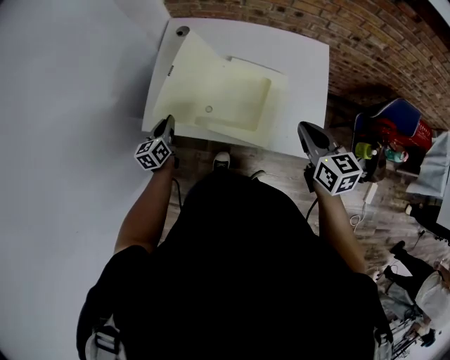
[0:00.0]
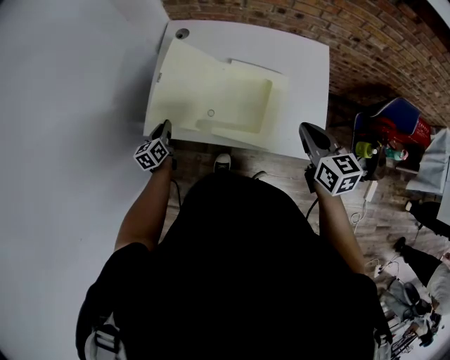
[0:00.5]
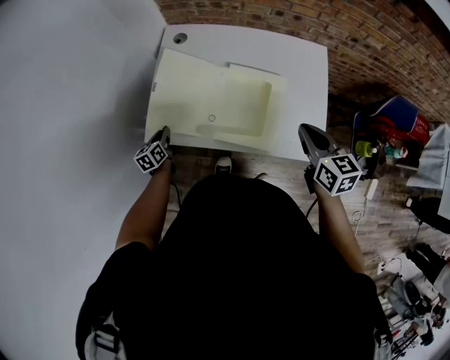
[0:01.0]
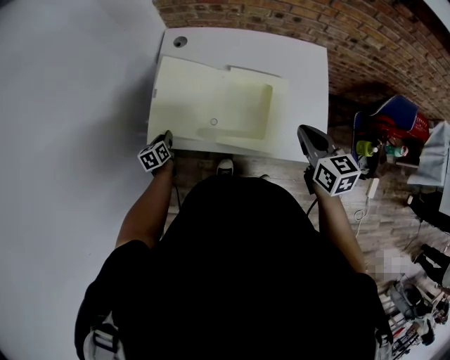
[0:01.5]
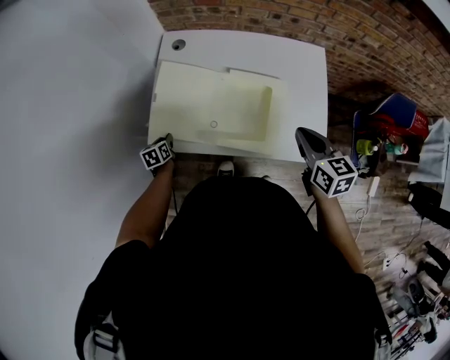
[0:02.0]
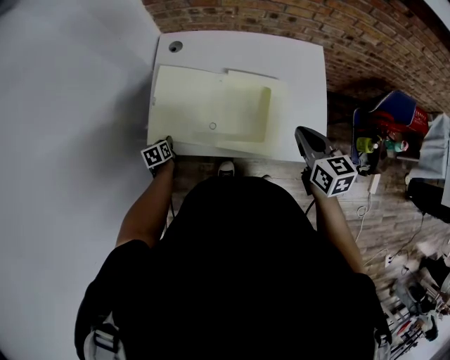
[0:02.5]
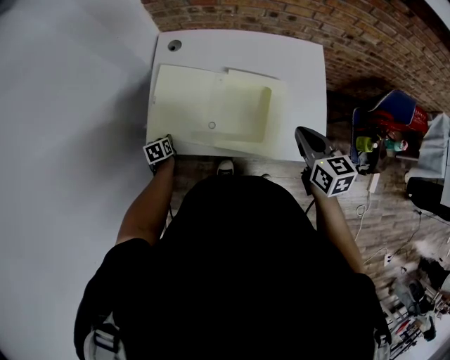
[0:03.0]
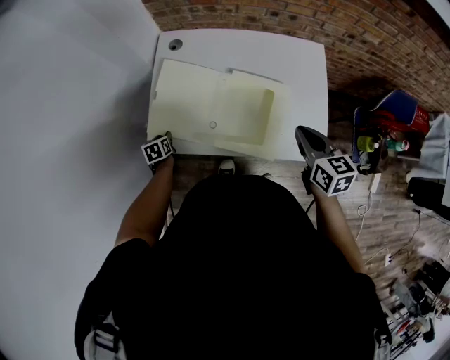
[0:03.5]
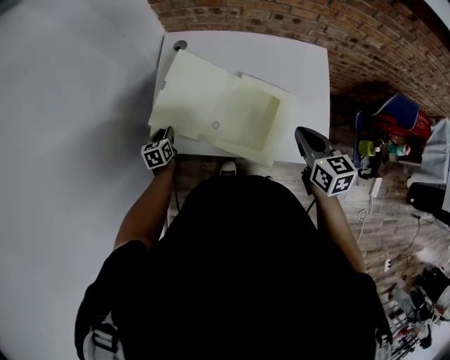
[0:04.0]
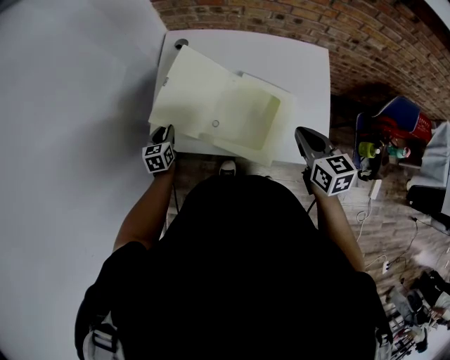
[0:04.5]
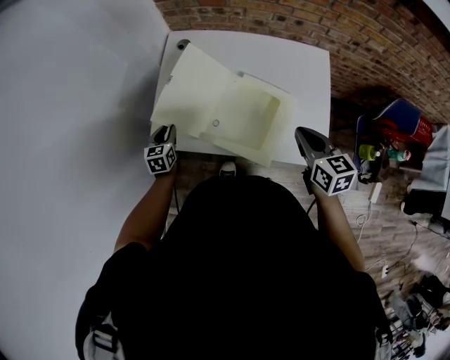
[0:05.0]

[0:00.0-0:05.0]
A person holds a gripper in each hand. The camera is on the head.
0:00.0 to 0:02.5: The left gripper moves downward and to the left, some 15 cm, and tilts its fingers some 30 degrees downward.
0:02.5 to 0:05.0: The left gripper is displaced upward by approximately 10 cm, and swivels some 30 degrees.

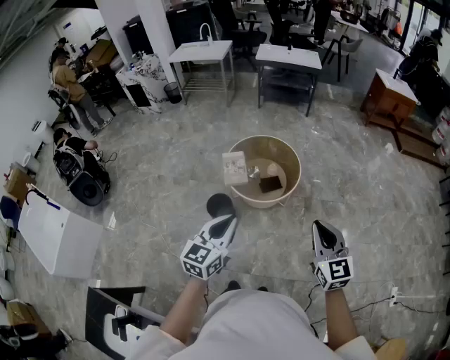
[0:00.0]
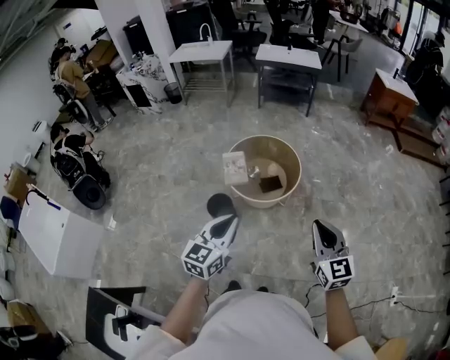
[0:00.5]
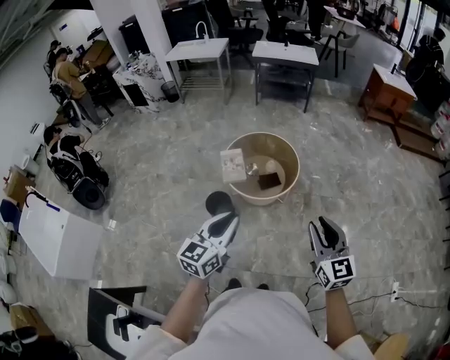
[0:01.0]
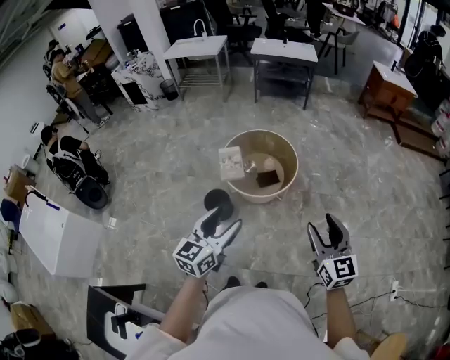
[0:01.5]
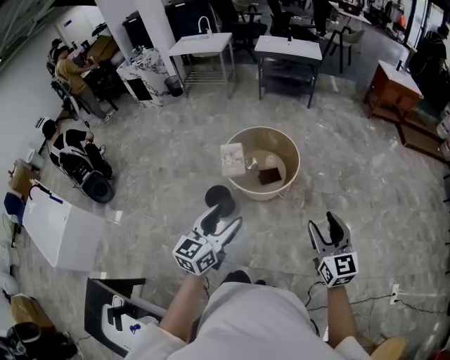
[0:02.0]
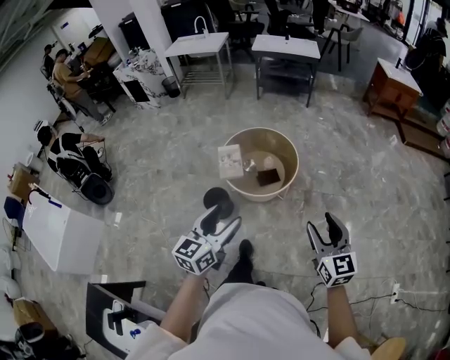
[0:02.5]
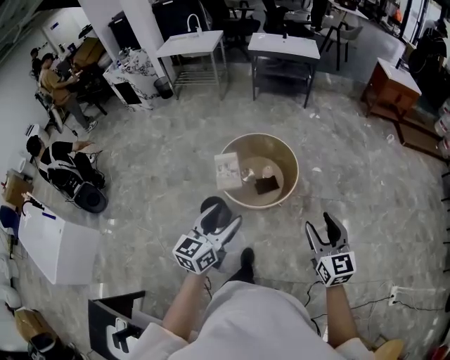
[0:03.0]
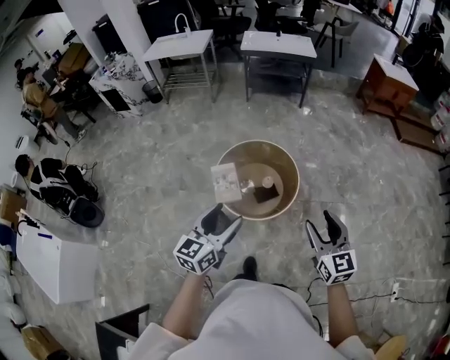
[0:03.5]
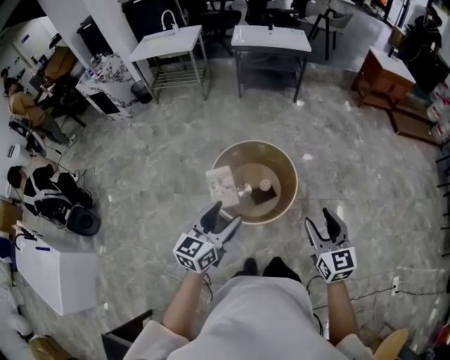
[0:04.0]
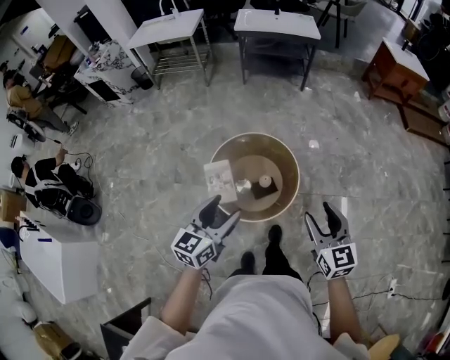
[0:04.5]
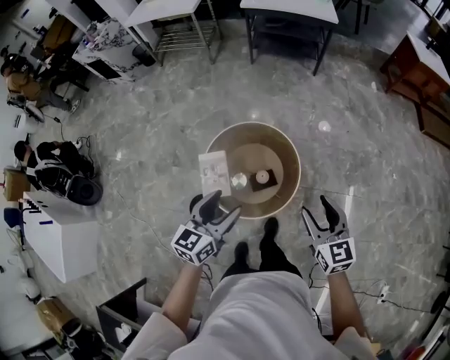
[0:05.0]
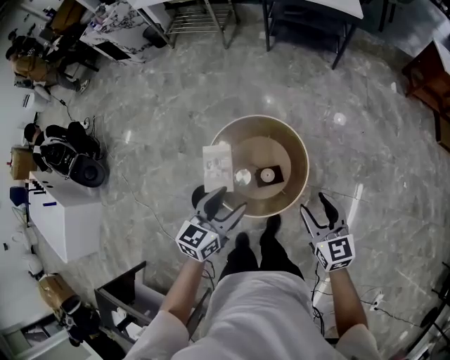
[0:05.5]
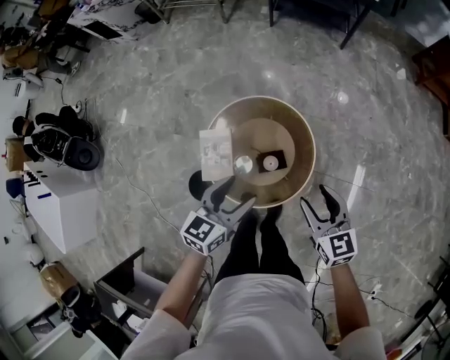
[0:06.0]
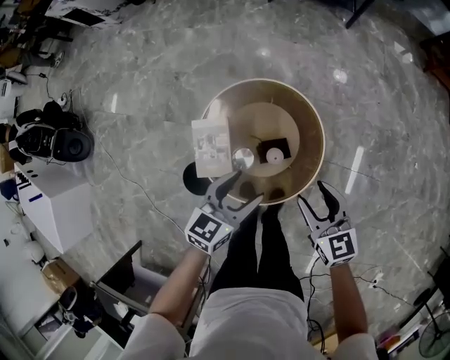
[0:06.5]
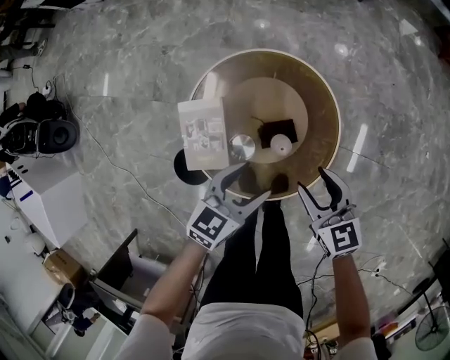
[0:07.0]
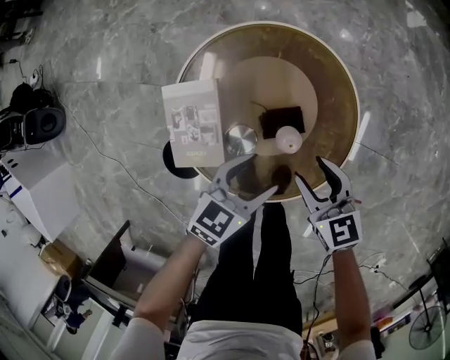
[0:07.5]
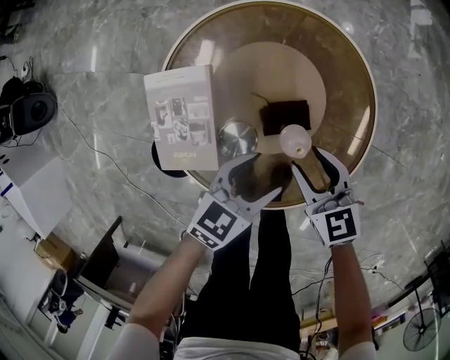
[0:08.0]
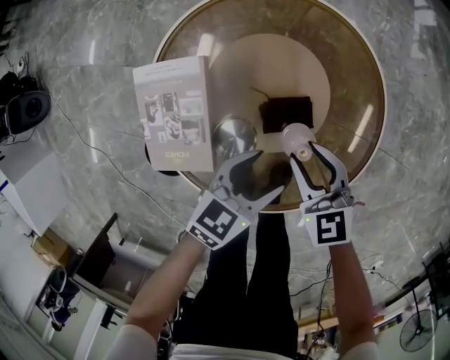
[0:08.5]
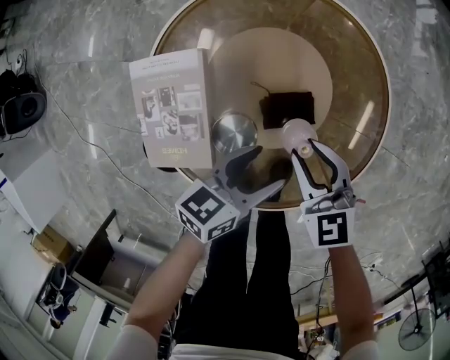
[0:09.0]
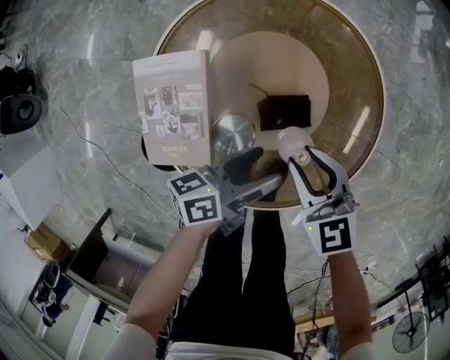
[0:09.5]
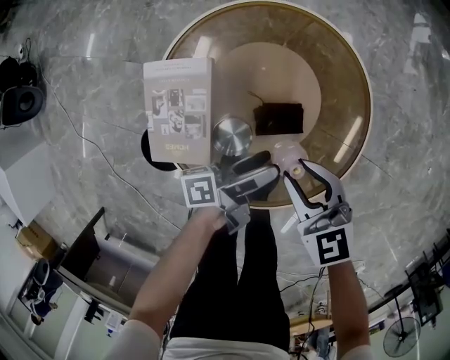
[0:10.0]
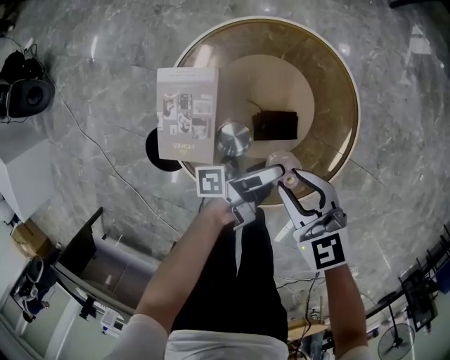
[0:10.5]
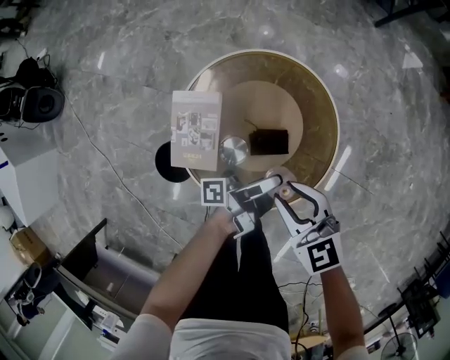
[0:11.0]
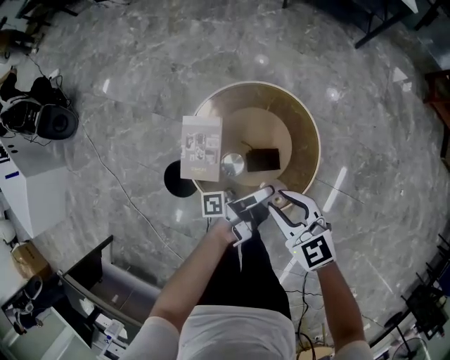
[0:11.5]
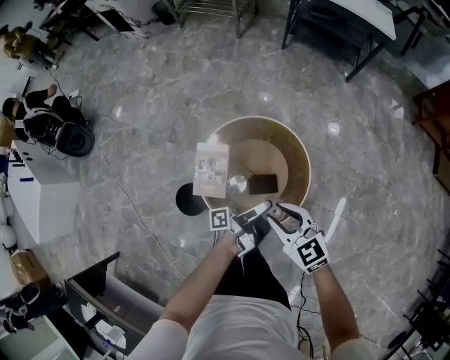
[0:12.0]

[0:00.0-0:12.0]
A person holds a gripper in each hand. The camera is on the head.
0:00.0 to 0:02.0: The right gripper heads to the right, covering some 5 cm, and opens its fingers, while the left gripper opens its fingers.
0:02.0 to 0:04.0: The two grippers go roughly 30 cm forward.
0:04.0 to 0:06.0: The right gripper is displaced forward and downward by some 35 cm, and rotates some 30 degrees. Meanwhile the left gripper shifts approximately 35 cm forward, downward and to the right.
0:06.0 to 0:08.0: The two grippers go some 40 cm downward.
0:08.0 to 0:10.0: The left gripper rolls counterclockwise, seen from behind, by some 70 degrees.
0:10.0 to 0:12.0: Both grippers travel together upward, about 35 cm. The left gripper turns by roughly 20 degrees.

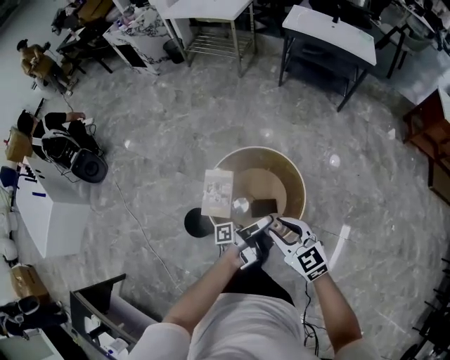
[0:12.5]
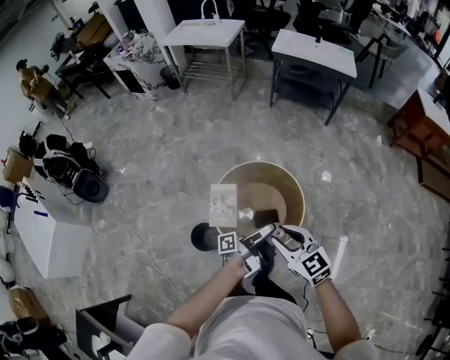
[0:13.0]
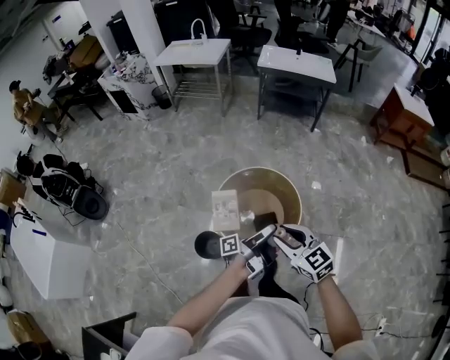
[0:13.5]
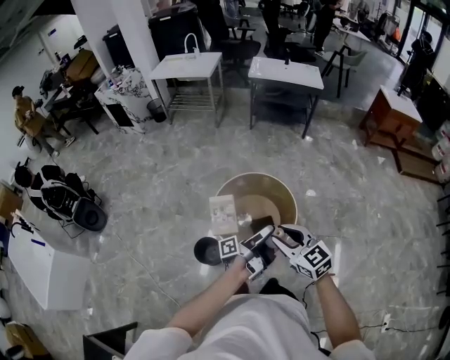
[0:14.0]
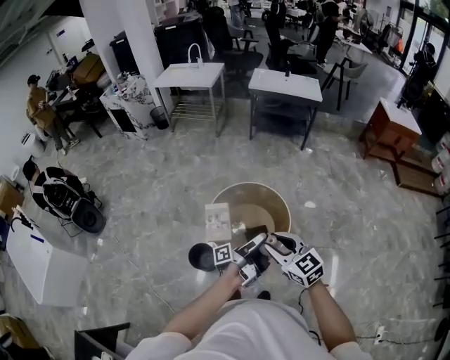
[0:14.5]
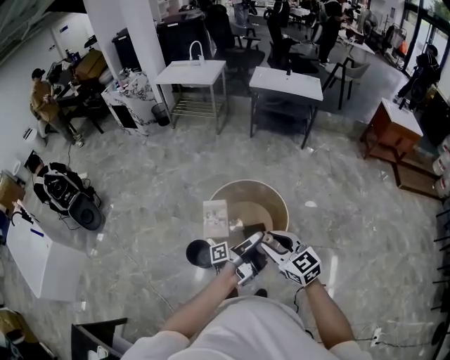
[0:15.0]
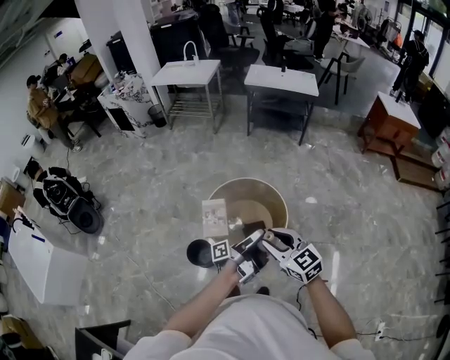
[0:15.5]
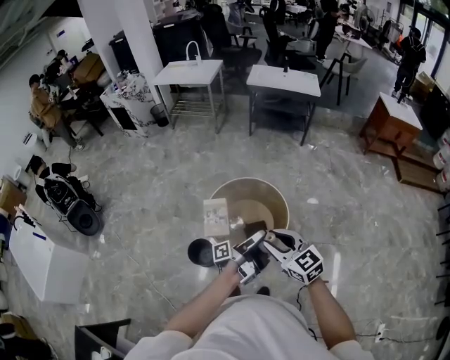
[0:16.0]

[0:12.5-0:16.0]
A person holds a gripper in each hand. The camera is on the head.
0:12.5 to 0:14.5: Both grippers move backward and upward, approximately 25 cm.
0:14.5 to 0:16.0: There are only small adjustments of the grippers.

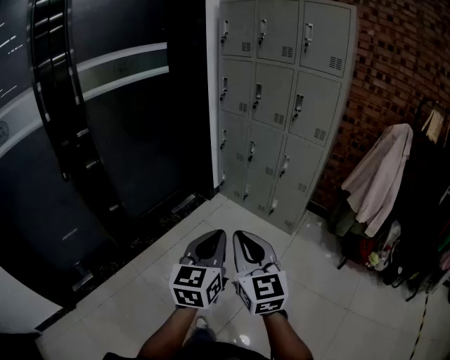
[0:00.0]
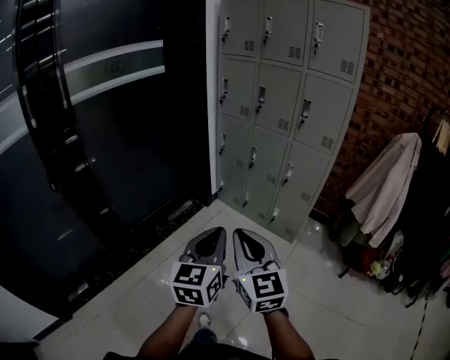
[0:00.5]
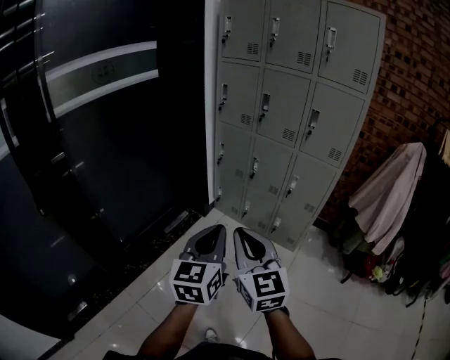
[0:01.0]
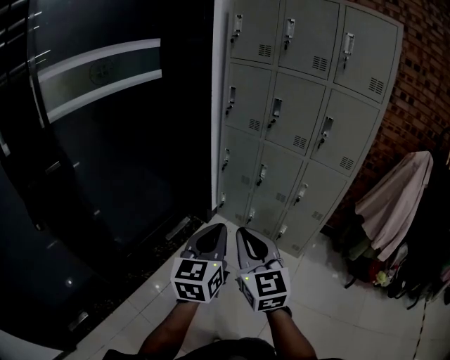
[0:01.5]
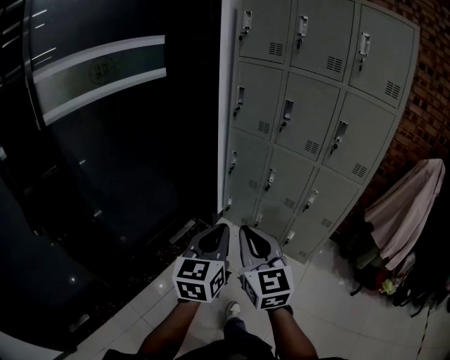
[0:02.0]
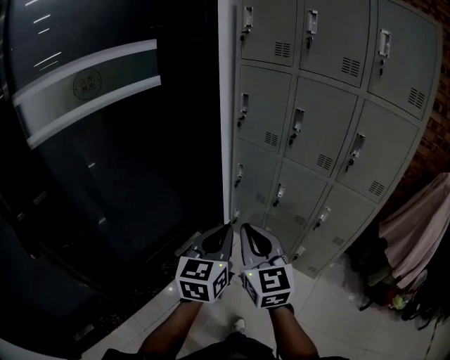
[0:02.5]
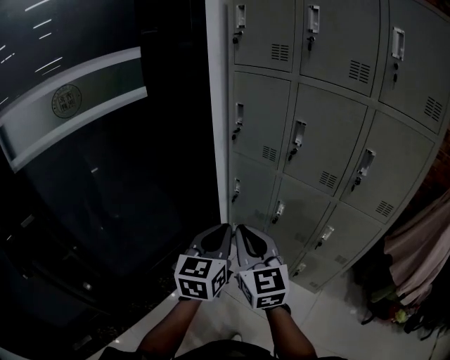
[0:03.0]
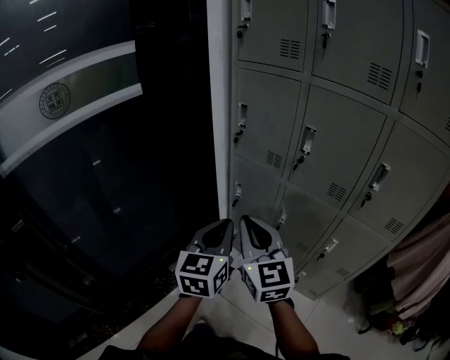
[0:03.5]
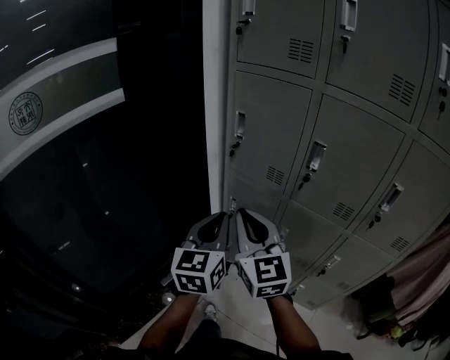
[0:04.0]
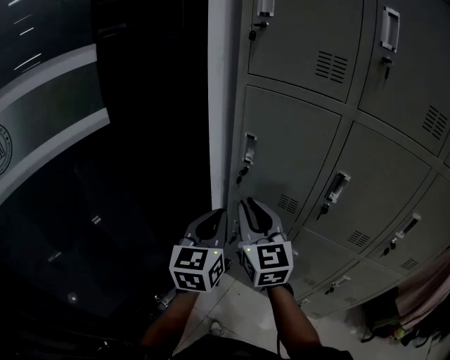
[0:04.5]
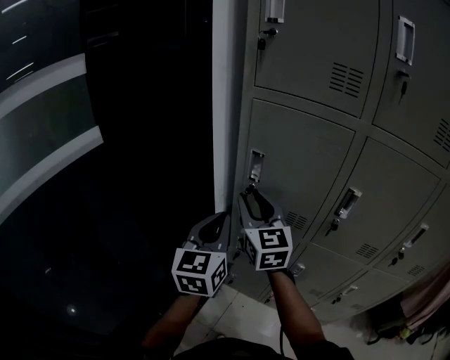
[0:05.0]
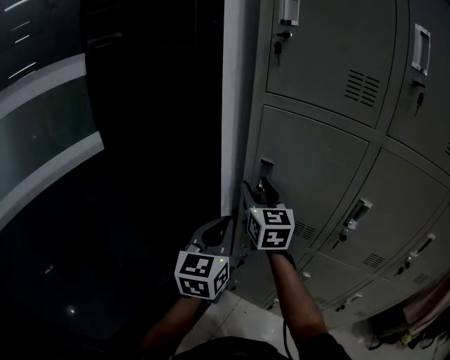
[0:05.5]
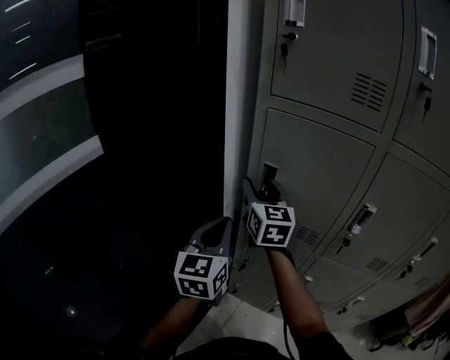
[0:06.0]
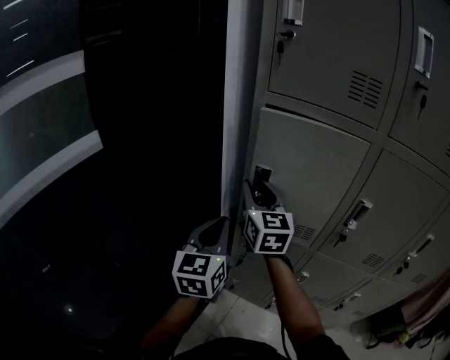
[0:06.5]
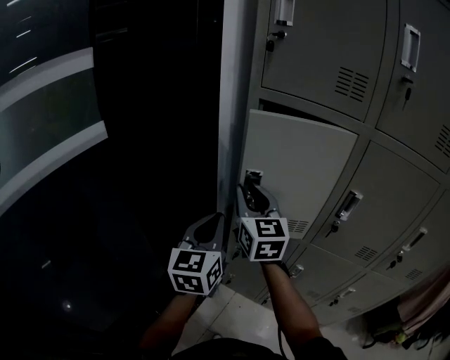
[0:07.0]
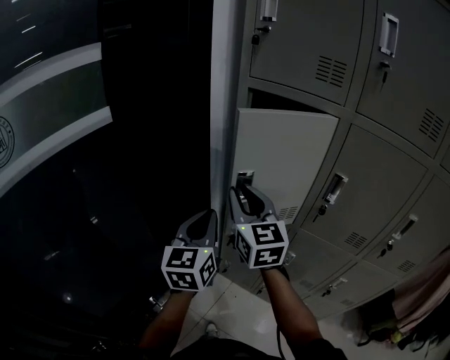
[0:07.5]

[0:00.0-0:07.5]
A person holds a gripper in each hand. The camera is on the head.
0:00.0 to 0:02.0: Both grippers are carried forward, about 40 cm.
0:02.0 to 0:04.0: Both grippers are carried forward, roughly 50 cm.
0:04.0 to 0:05.5: The two grippers go approximately 30 cm forward. The right gripper opens.
0:05.5 to 0:07.5: The left gripper travels backward by roughly 10 cm. Meanwhile the right gripper shifts approximately 15 cm backward, and closes up.
